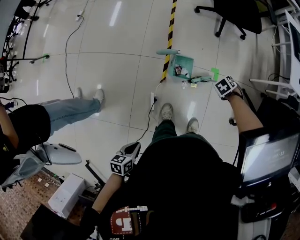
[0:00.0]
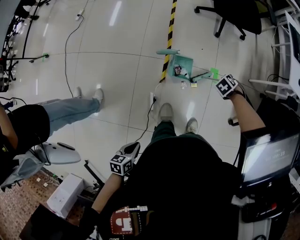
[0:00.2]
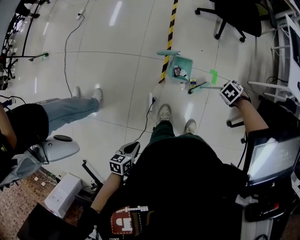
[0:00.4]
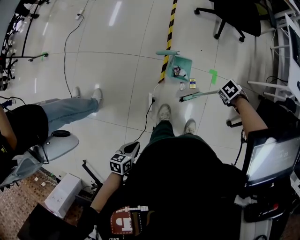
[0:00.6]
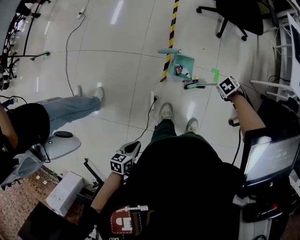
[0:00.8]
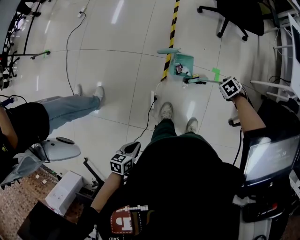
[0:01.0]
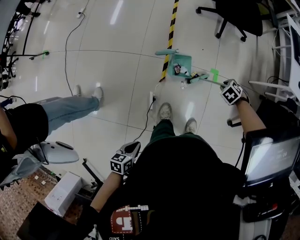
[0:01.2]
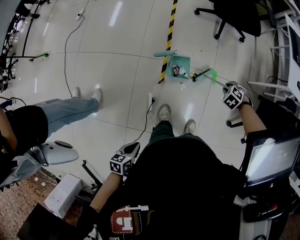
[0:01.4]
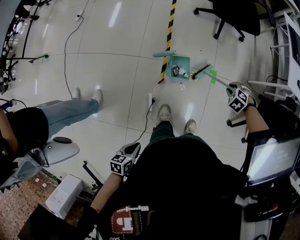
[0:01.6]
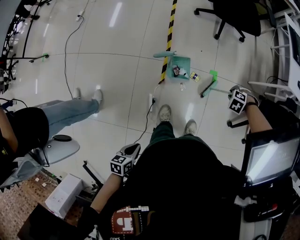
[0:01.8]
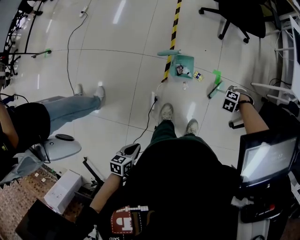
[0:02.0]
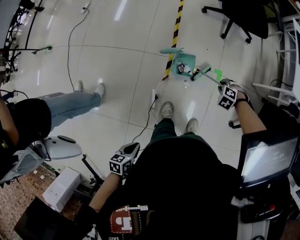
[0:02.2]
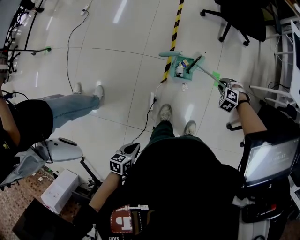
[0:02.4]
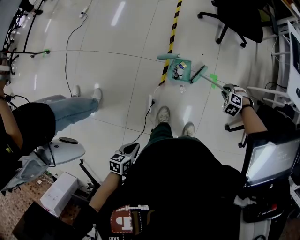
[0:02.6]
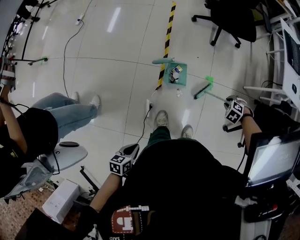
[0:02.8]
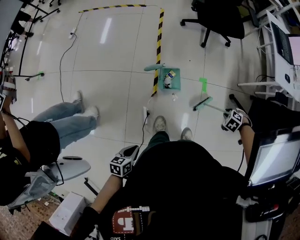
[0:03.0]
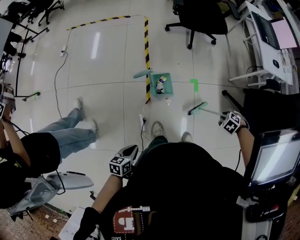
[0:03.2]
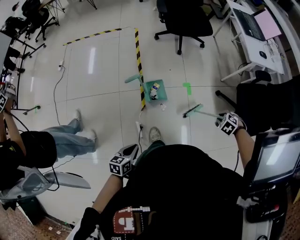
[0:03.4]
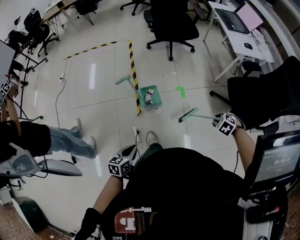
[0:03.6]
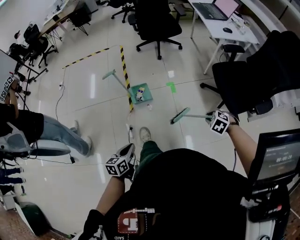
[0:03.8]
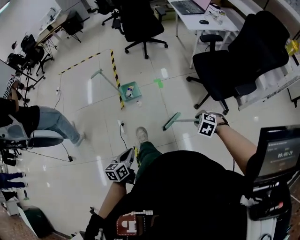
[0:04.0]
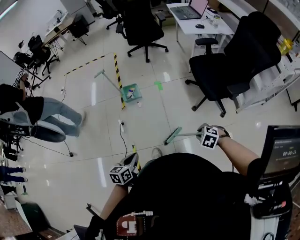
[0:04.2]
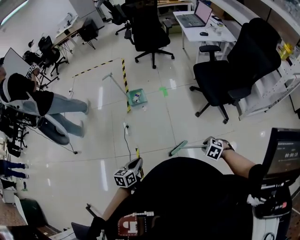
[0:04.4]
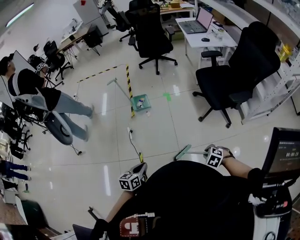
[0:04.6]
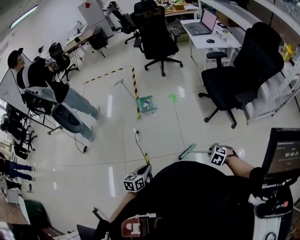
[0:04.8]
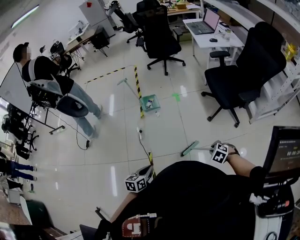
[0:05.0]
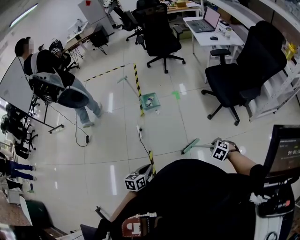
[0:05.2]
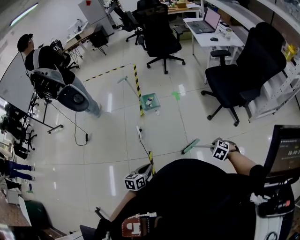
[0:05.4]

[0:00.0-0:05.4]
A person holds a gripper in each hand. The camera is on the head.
0:02.8 to 0:04.0: The left gripper ends up some 40 cm from where it was, and swivels approximately 20 degrees.
0:04.0 to 0:05.4: The left gripper shifts by approximately 20 cm.

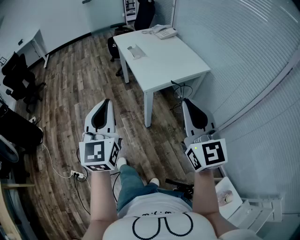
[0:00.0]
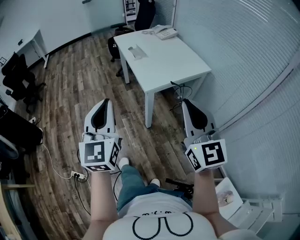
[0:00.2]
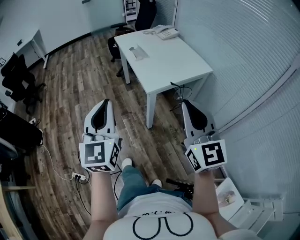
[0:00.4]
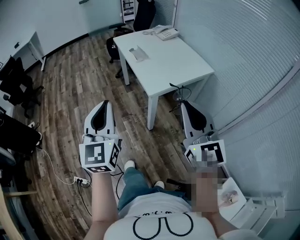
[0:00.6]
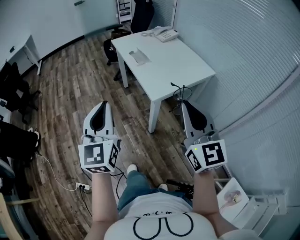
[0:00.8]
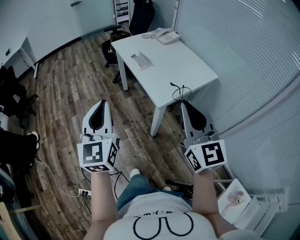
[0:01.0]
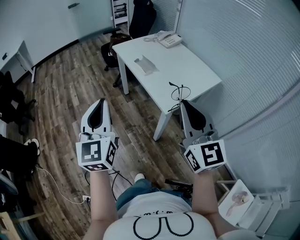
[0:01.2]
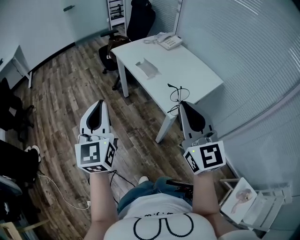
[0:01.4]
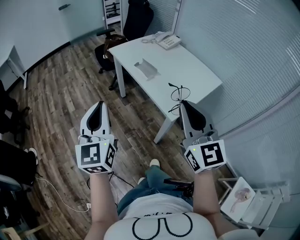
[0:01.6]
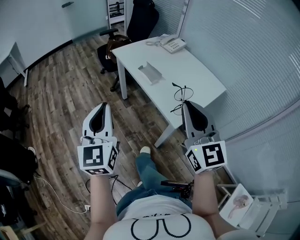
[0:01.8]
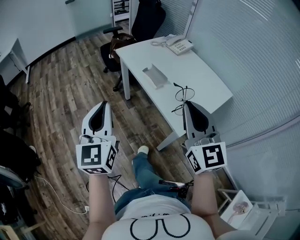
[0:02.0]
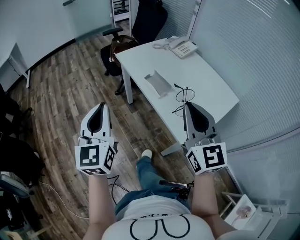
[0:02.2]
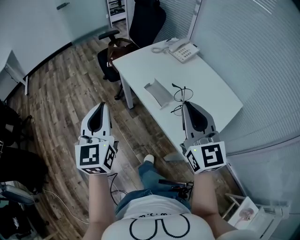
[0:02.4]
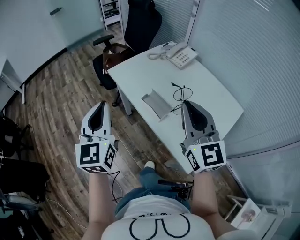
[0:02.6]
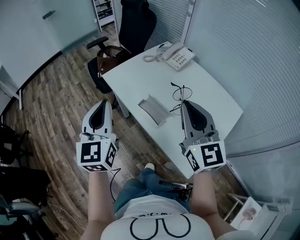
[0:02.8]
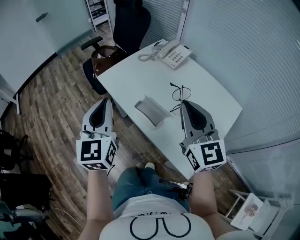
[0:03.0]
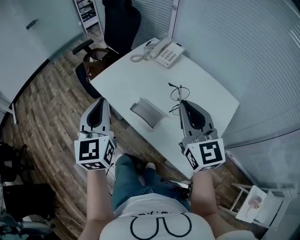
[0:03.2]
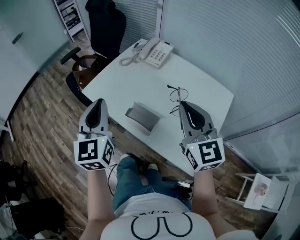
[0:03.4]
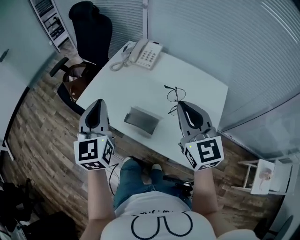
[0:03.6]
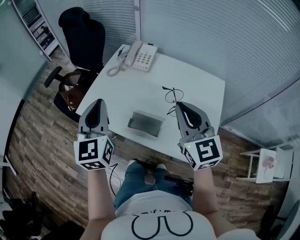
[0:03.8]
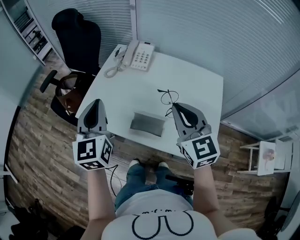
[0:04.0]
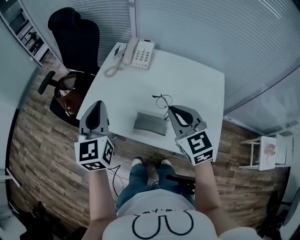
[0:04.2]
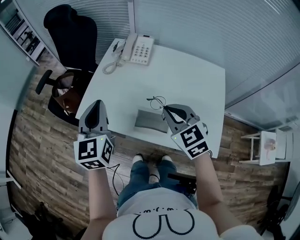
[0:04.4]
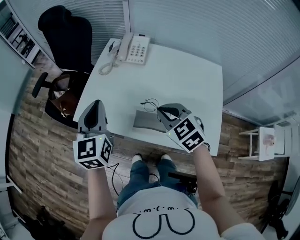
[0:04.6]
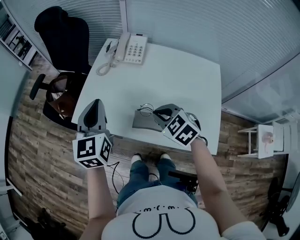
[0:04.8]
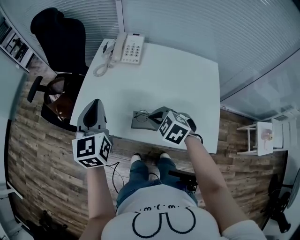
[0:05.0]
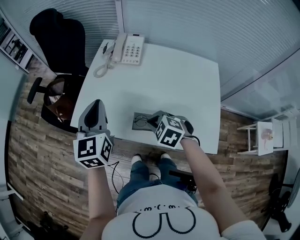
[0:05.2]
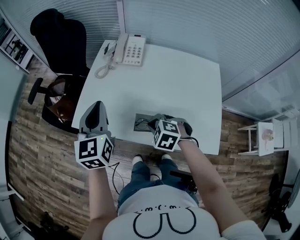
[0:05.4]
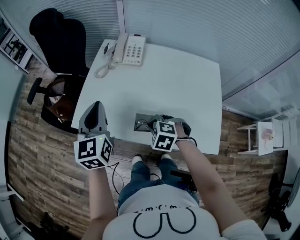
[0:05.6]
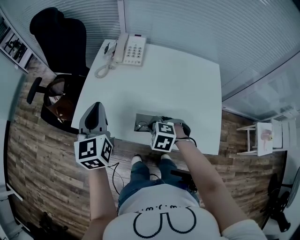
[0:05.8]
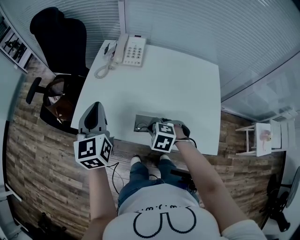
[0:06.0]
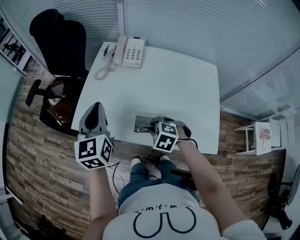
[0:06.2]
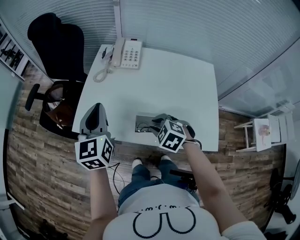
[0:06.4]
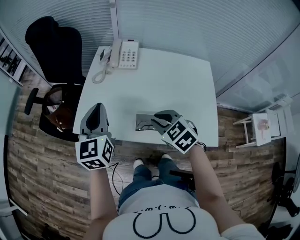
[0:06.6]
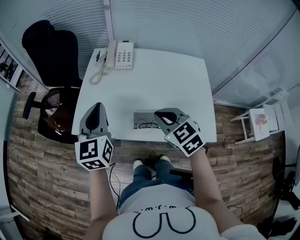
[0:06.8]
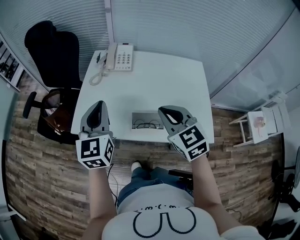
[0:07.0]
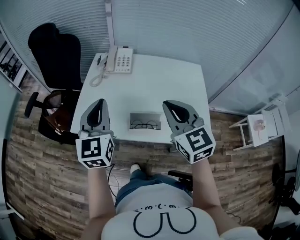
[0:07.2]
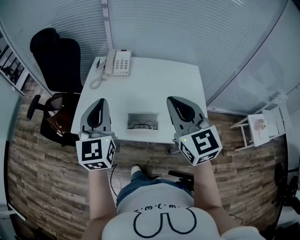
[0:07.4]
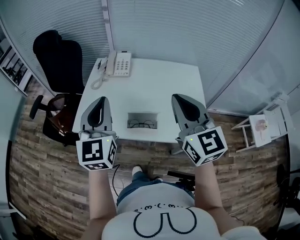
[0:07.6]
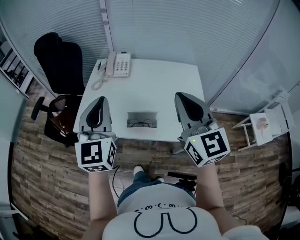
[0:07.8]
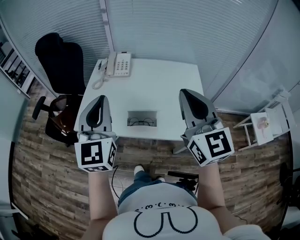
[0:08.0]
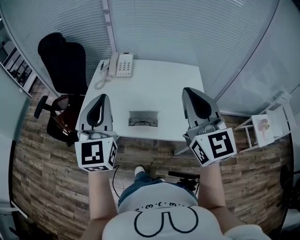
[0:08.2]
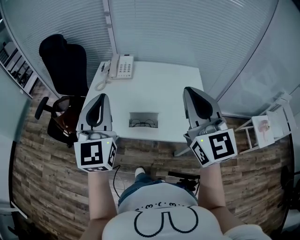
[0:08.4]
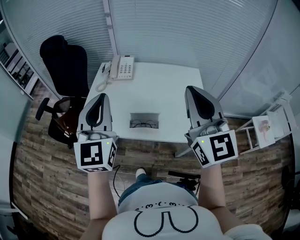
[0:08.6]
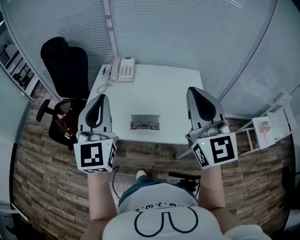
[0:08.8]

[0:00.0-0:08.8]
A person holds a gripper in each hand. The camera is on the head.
0:00.0 to 0:01.4: Both grippers travel together forward and to the left, some 30 cm.
0:01.4 to 0:03.0: The two grippers travel together, forward, approximately 40 cm.
0:03.0 to 0:04.4: The right gripper moves downward, forward and to the left, some 15 cm, and swivels about 30 degrees, while the left gripper moves forward, roughly 20 cm, and rotates about 30 degrees.
0:04.4 to 0:05.8: The left gripper moves roughly 5 cm; the right gripper moves downward, about 15 cm, and points its fingers approximately 40 degrees further downward.
0:05.8 to 0:07.4: The right gripper is displaced upward by roughly 30 cm, and tilts its fingers roughly 60 degrees upward, while the left gripper heads upward and backward, covering about 10 cm.
0:07.4 to 0:08.8: The two grippers go about 10 cm upward and backward.

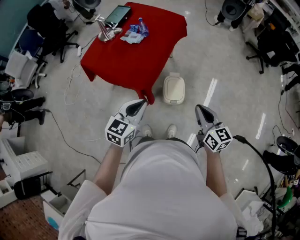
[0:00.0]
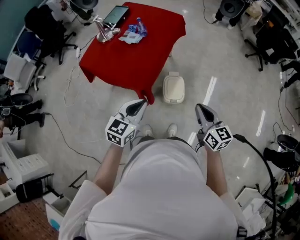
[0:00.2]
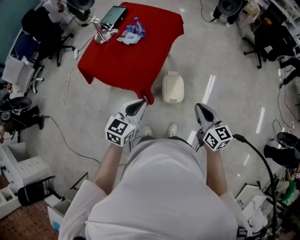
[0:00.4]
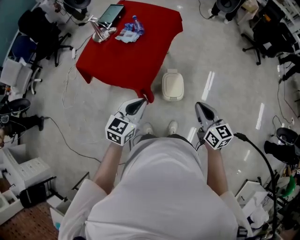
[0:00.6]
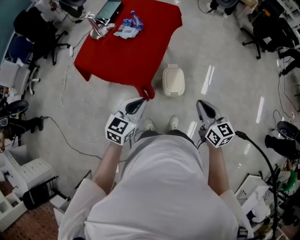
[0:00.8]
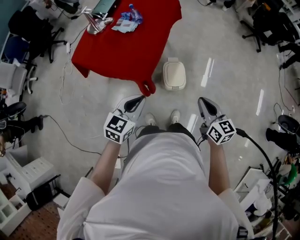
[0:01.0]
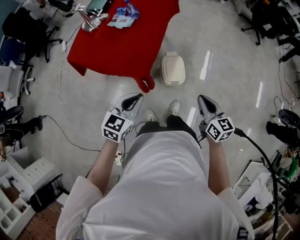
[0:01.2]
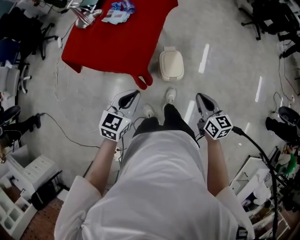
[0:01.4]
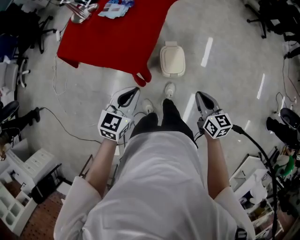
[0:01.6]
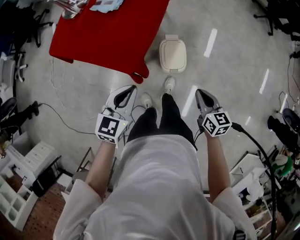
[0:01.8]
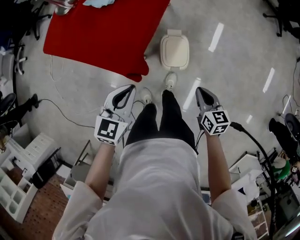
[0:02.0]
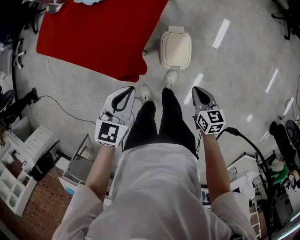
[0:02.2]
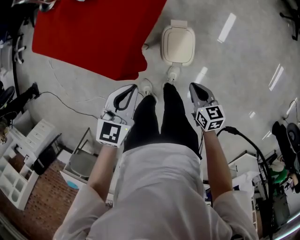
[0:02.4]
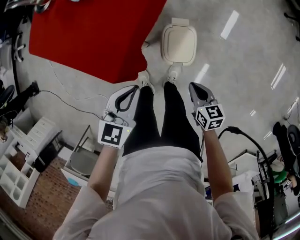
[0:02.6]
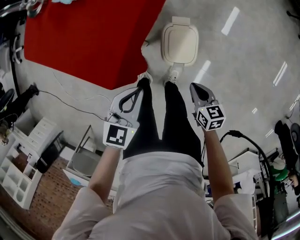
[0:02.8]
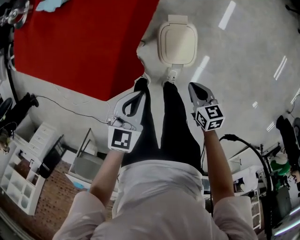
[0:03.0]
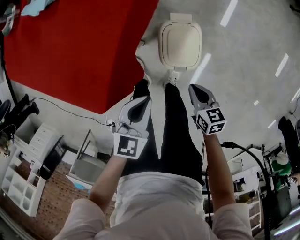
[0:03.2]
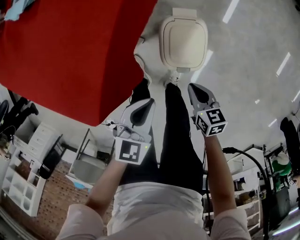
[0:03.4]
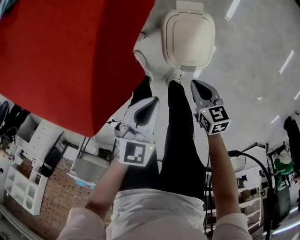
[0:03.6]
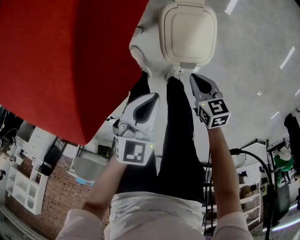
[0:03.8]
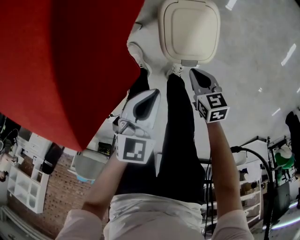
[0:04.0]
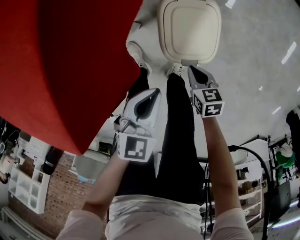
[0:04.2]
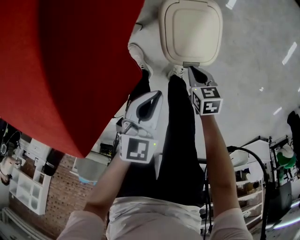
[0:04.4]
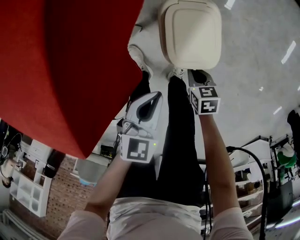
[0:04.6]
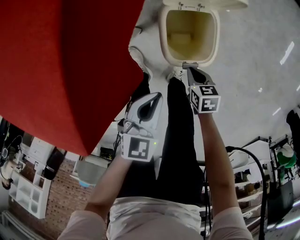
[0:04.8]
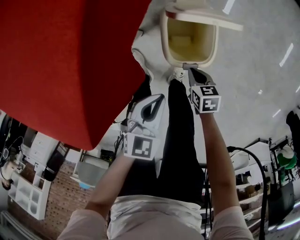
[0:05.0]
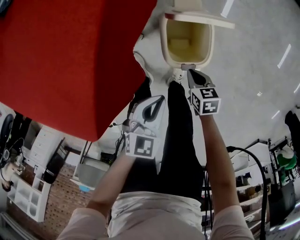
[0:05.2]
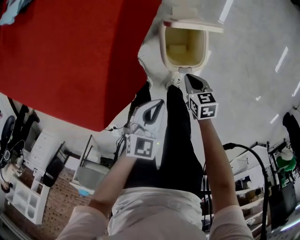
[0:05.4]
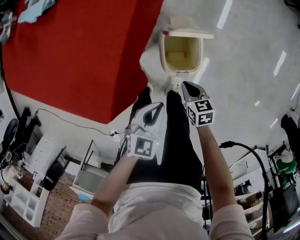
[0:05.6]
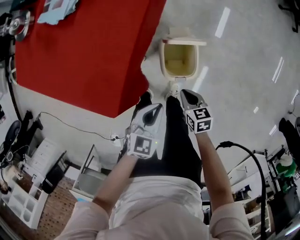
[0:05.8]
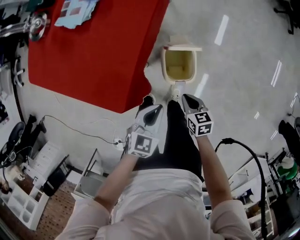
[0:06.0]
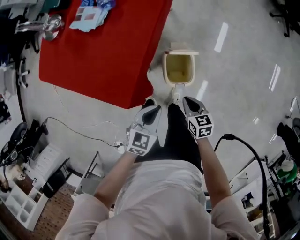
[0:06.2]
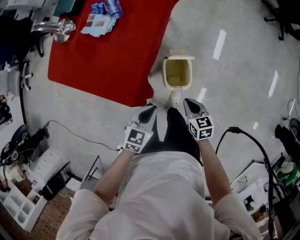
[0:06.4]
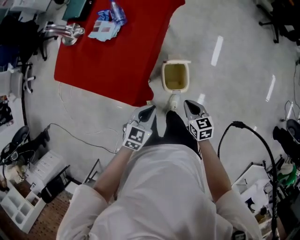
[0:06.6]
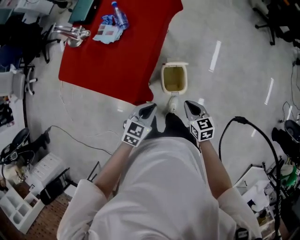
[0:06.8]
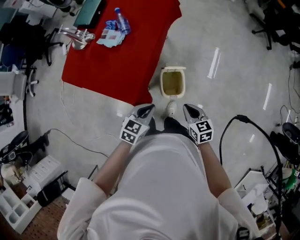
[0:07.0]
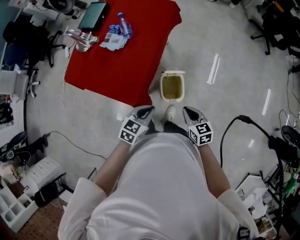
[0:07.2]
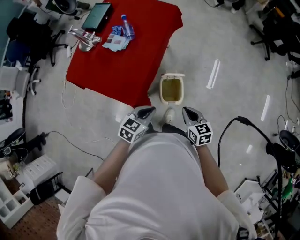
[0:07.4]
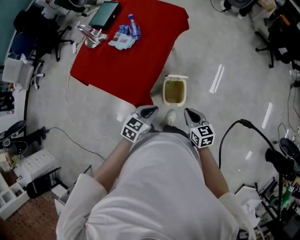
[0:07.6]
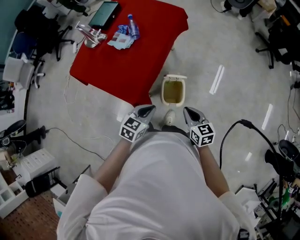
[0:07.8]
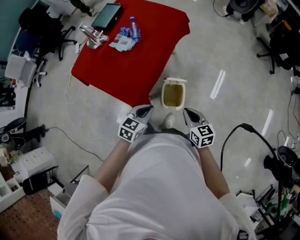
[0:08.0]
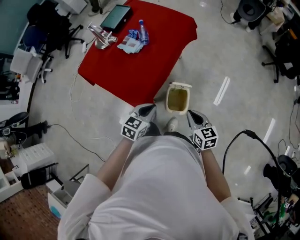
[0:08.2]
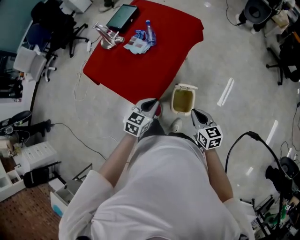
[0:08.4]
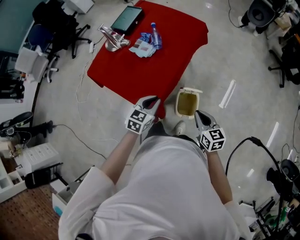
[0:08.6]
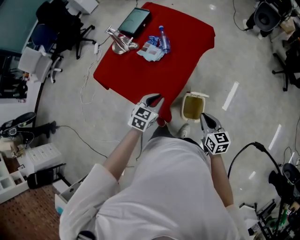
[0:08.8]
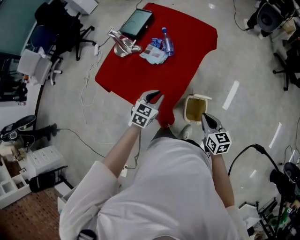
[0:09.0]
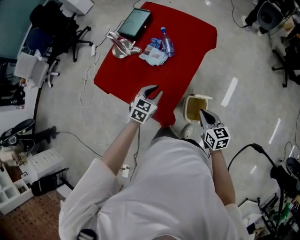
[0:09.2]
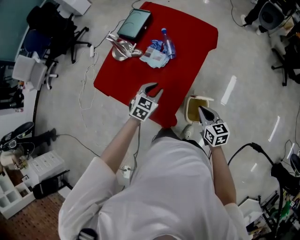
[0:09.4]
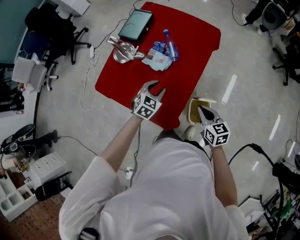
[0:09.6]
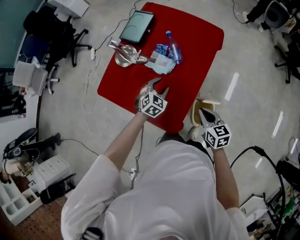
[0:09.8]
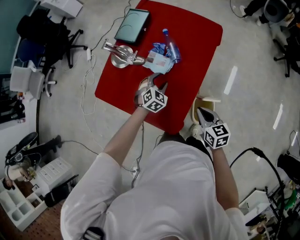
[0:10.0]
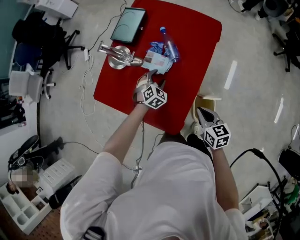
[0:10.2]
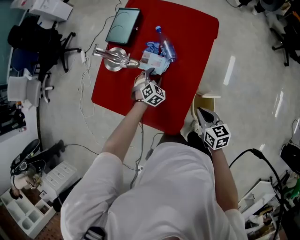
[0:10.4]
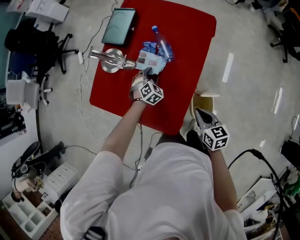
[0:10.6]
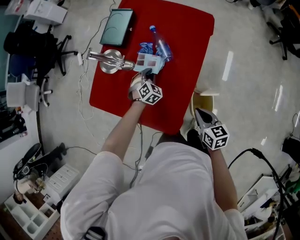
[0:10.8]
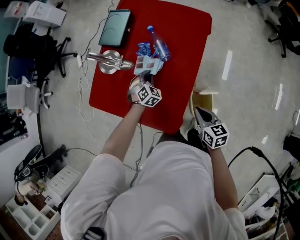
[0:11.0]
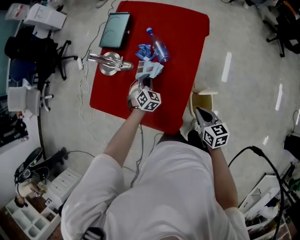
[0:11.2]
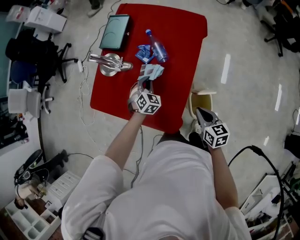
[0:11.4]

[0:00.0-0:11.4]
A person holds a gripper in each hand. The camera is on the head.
0:00.0 to 0:01.4: The two grippers go about 10 cm downward.
0:01.4 to 0:02.8: The right gripper heads downward, covering about 30 cm, and changes its angle by about 30 degrees, while the left gripper shifts about 25 cm downward, forward and to the right.
0:02.8 to 0:04.2: The two grippers go about 25 cm downward.
0:04.2 to 0:05.6: The grippers both shift upward by about 10 cm.
0:05.6 to 0:07.2: The grippers both shift upward by approximately 35 cm. The right gripper swivels roughly 20 degrees.
0:07.2 to 0:08.6: The right gripper moves forward and upward, about 10 cm, while the left gripper goes some 10 cm forward and to the left.
0:08.6 to 0:10.0: The left gripper moves forward, downward and to the left, approximately 30 cm, changes its angle by some 30 degrees, and opens up. The right gripper moves to the left and forward, about 20 cm.
0:10.0 to 0:11.4: The left gripper goes downward and returns, approximately 10 cm each way, and closes its fingers.
